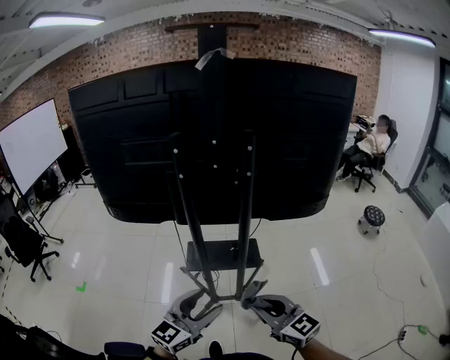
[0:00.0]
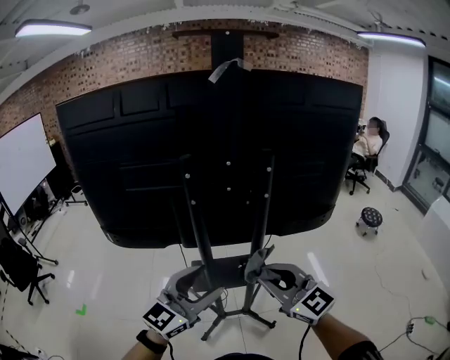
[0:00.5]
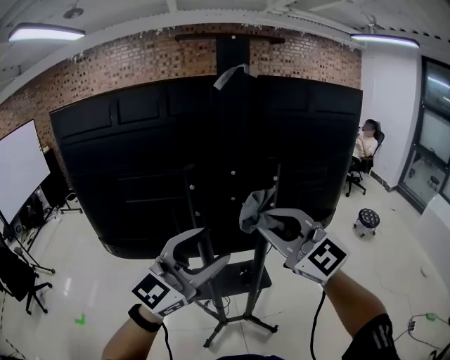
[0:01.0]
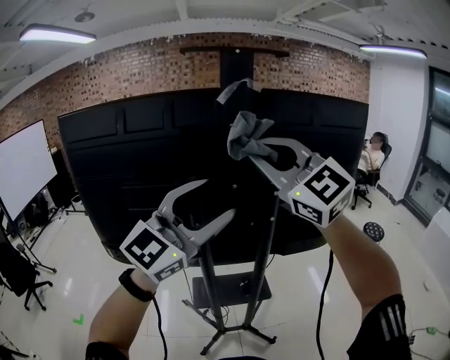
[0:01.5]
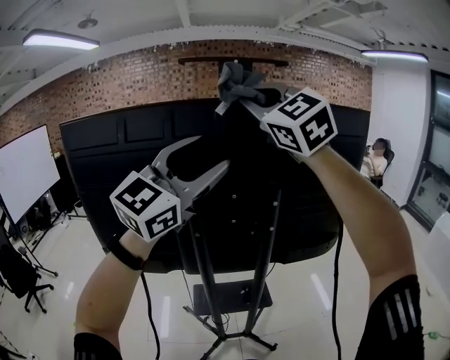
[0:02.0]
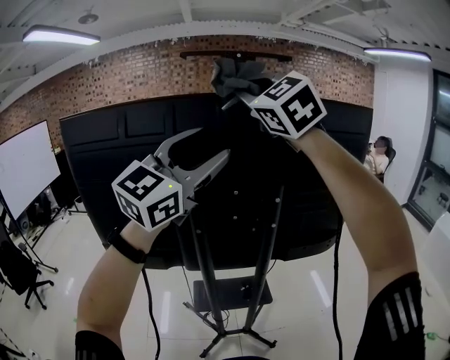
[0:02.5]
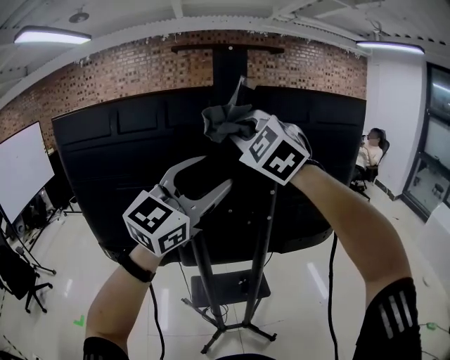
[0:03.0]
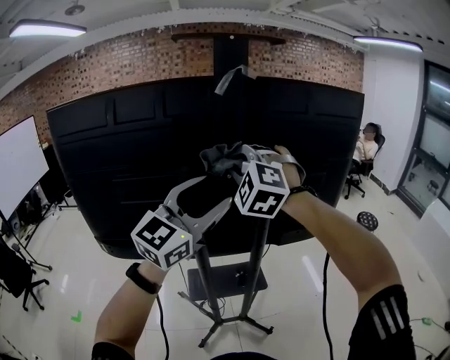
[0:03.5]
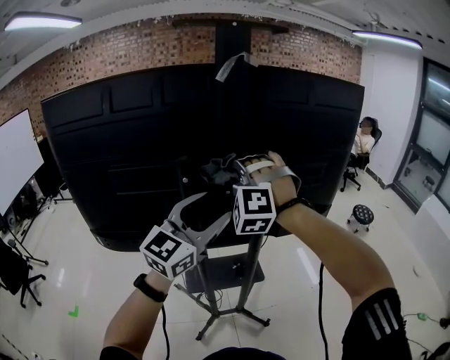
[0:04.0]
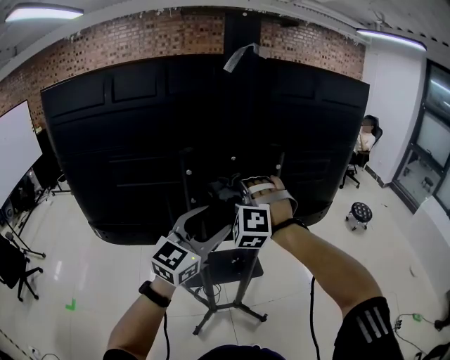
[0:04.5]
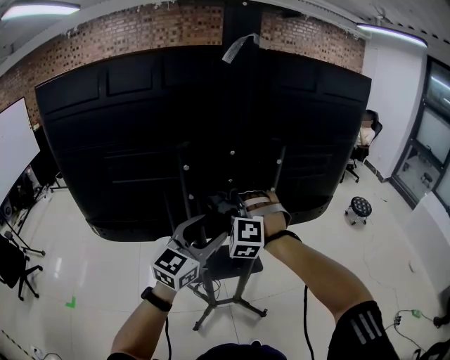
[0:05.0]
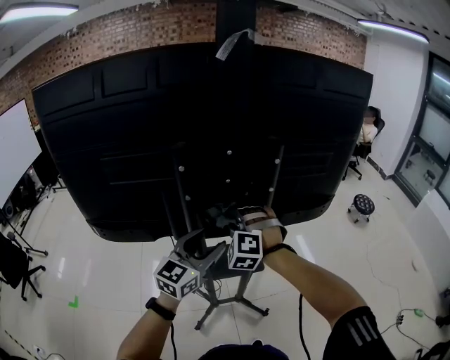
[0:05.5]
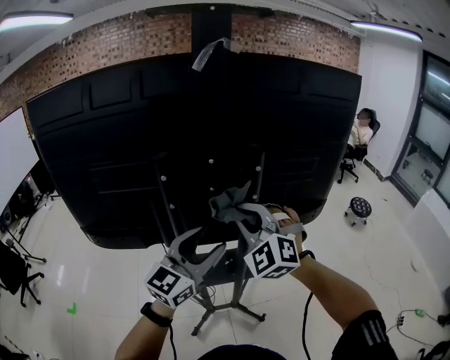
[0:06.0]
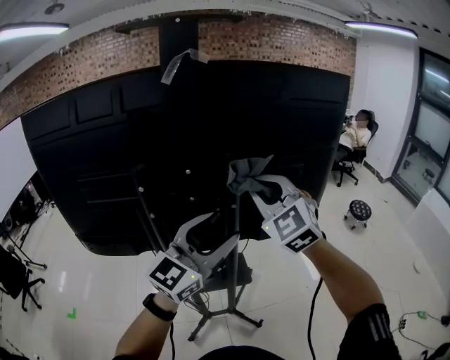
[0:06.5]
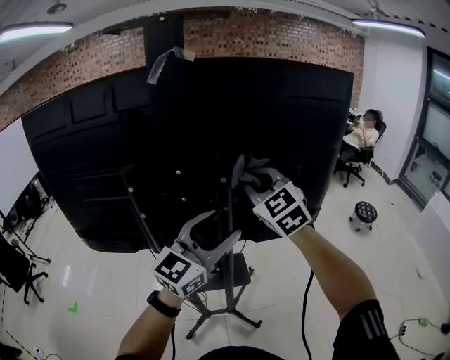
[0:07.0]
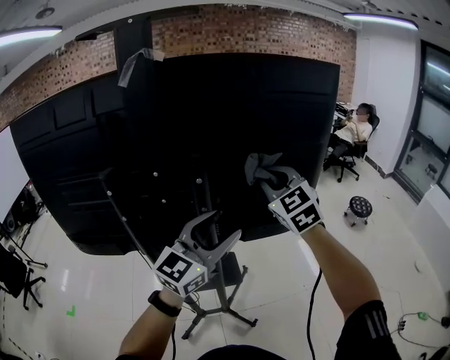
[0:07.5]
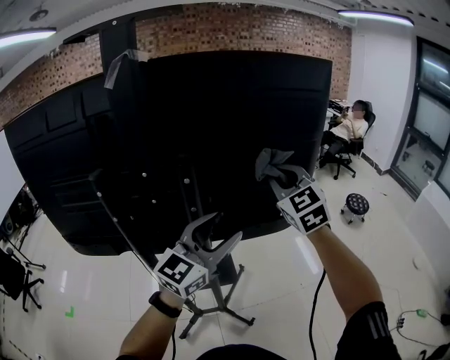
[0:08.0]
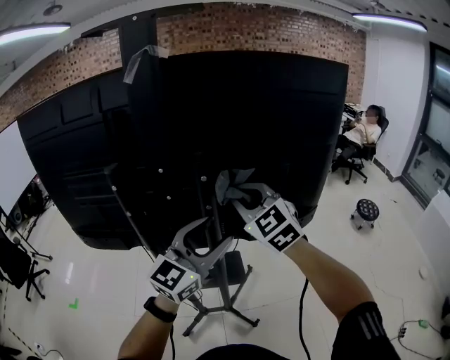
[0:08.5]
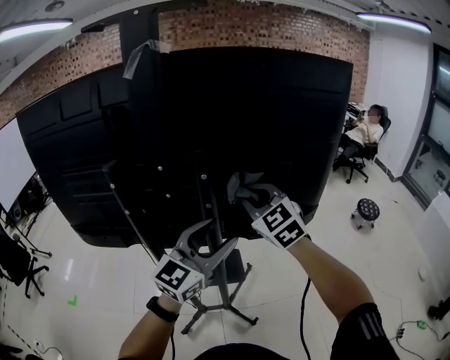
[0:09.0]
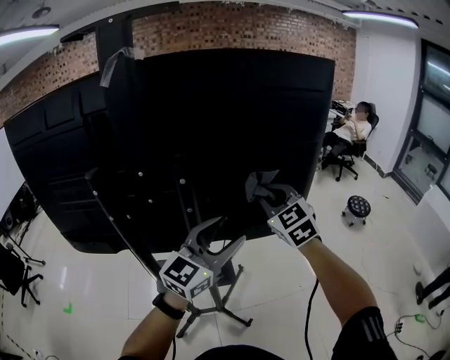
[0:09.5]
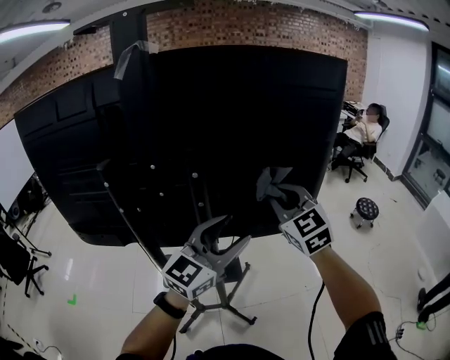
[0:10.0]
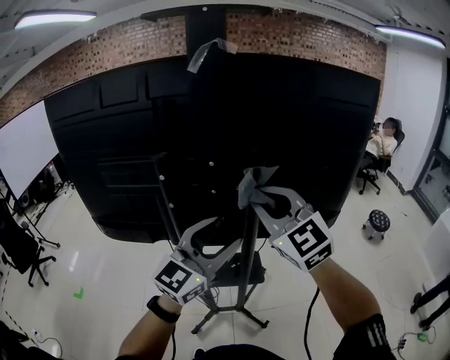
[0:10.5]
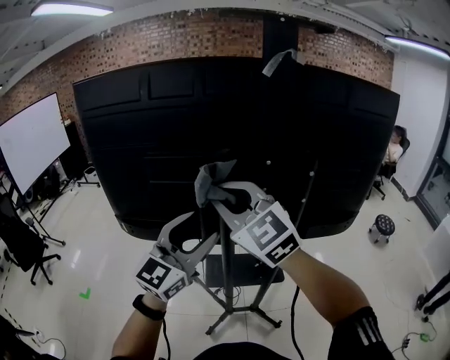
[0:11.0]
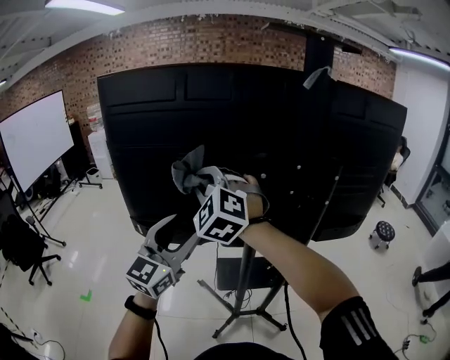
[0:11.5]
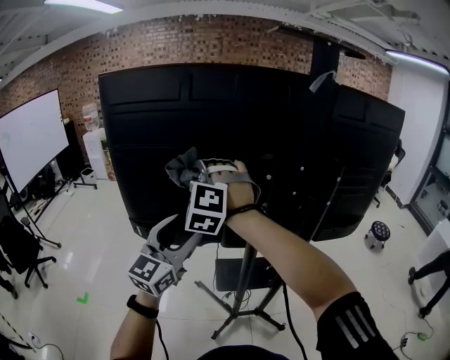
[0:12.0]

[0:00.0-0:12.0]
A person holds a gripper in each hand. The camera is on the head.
0:00.0 to 0:02.0: The grippers both shift upward and forward by approximately 60 cm. The right gripper twists approximately 50 degrees counterclockwise, seen from behind; the left gripper turns by approximately 40 degrees.
0:02.0 to 0:04.0: Both grippers move downward, about 25 cm. The right gripper turns by some 60 degrees.
0:04.0 to 0:06.0: The right gripper shifts some 10 cm downward and to the right, and changes its angle by approximately 30 degrees. The left gripper is displaced downward by approximately 10 cm.
0:06.0 to 0:08.0: The grippers both shift to the right and forward by some 25 cm. The right gripper swivels about 30 degrees.
0:08.0 to 0:10.0: The right gripper moves some 15 cm to the left and comes back.
0:10.0 to 0:12.0: Both grippers are carried to the left, about 50 cm. The right gripper rolls counterclockwise, seen from behind, by about 50 degrees.

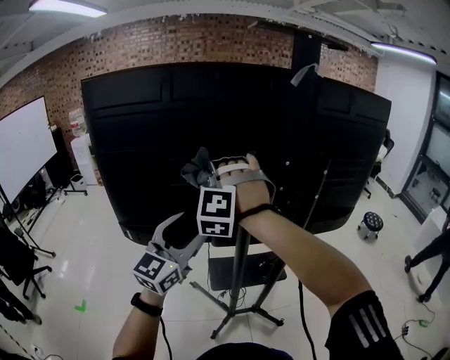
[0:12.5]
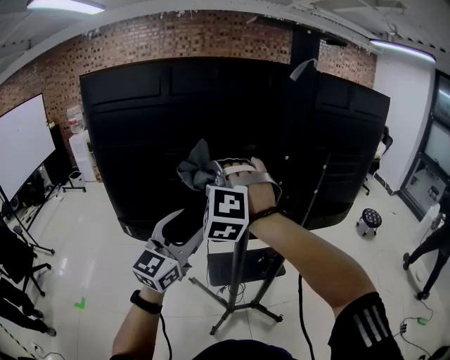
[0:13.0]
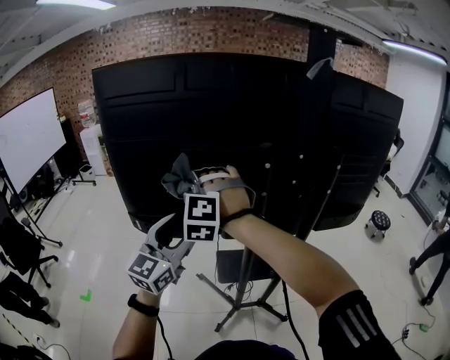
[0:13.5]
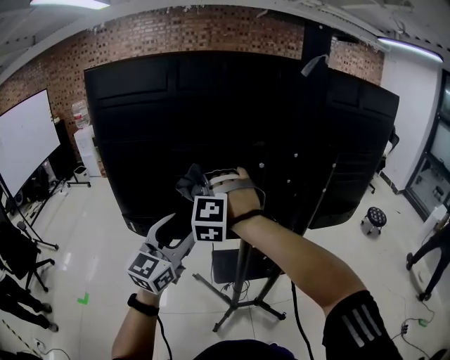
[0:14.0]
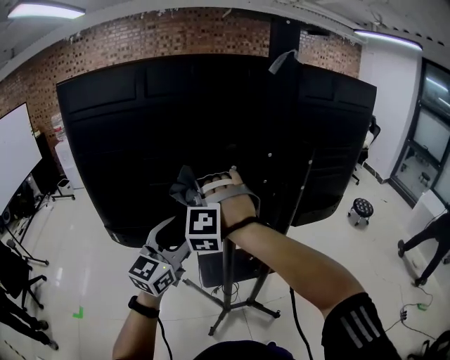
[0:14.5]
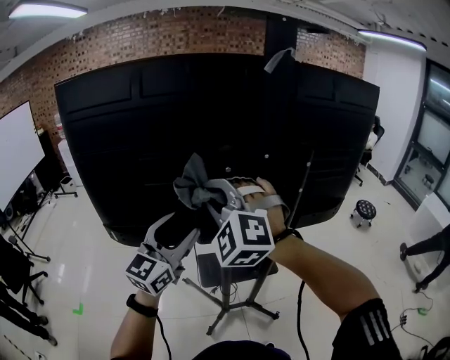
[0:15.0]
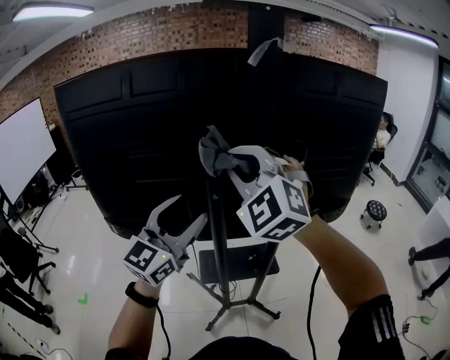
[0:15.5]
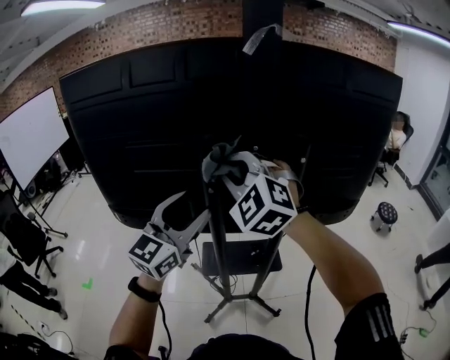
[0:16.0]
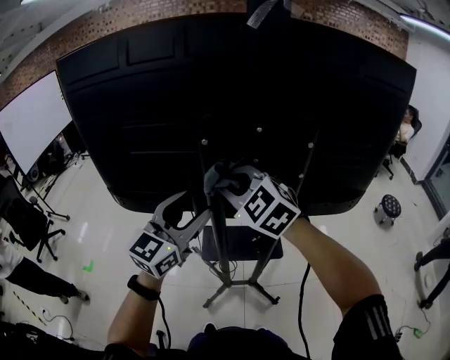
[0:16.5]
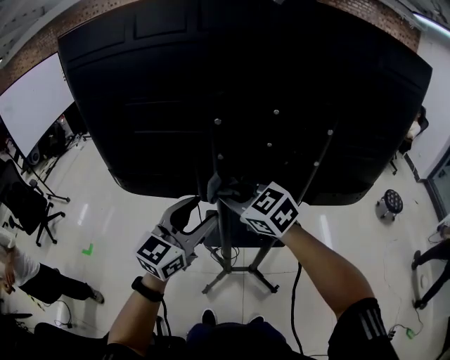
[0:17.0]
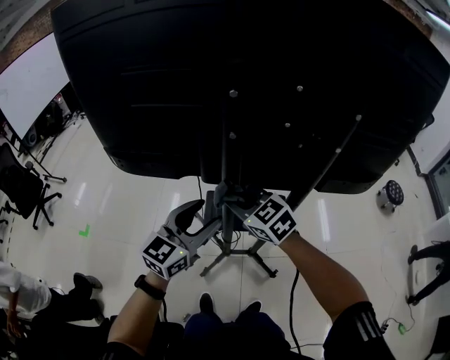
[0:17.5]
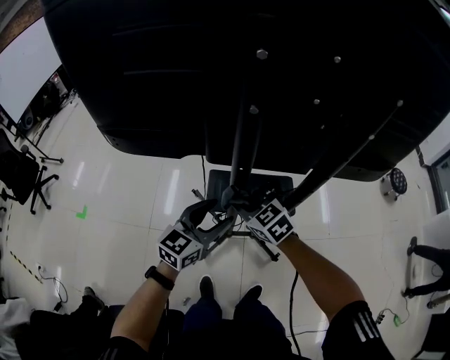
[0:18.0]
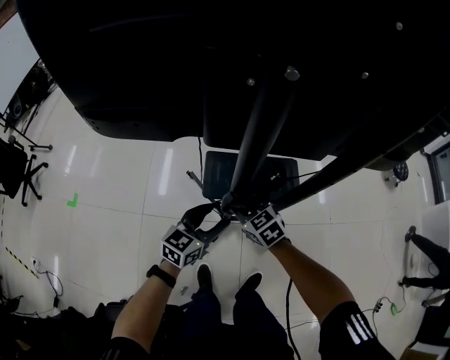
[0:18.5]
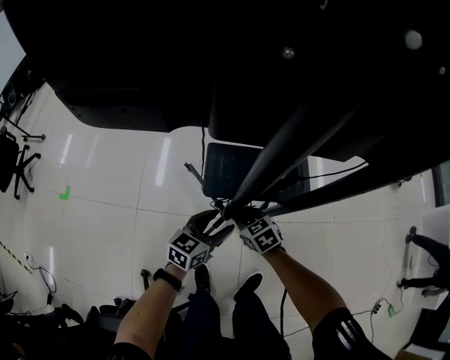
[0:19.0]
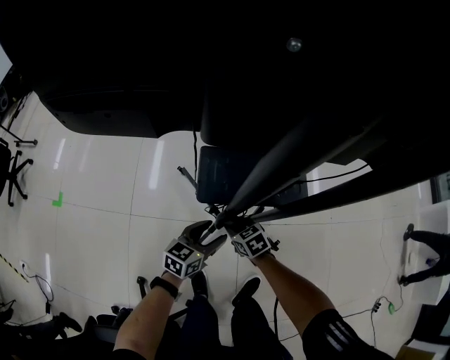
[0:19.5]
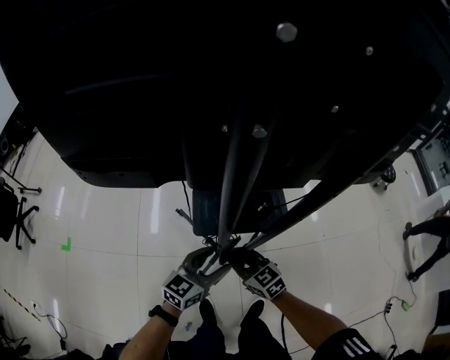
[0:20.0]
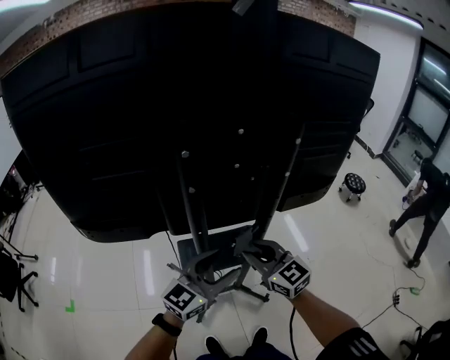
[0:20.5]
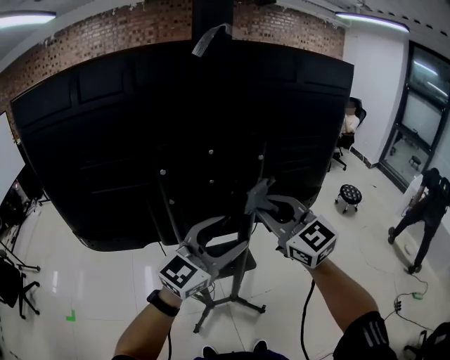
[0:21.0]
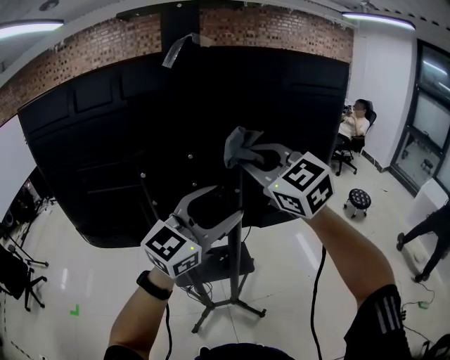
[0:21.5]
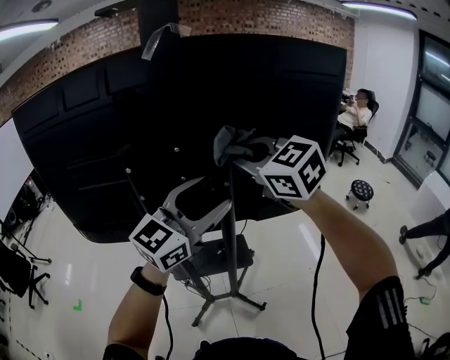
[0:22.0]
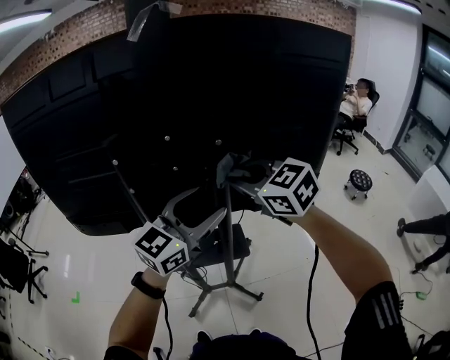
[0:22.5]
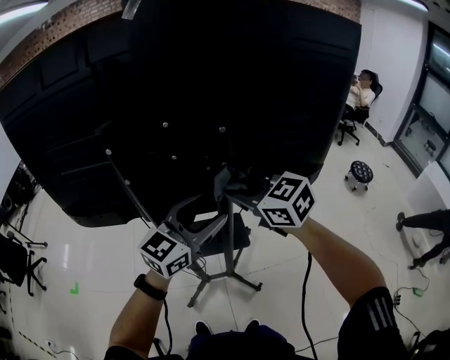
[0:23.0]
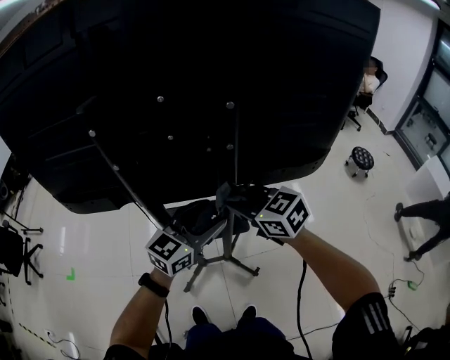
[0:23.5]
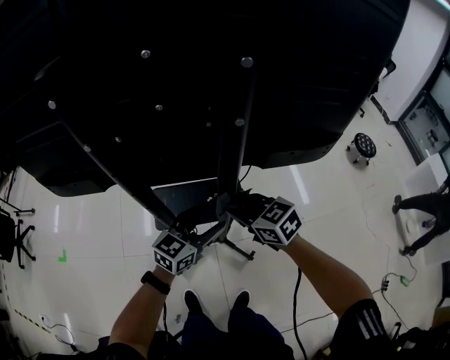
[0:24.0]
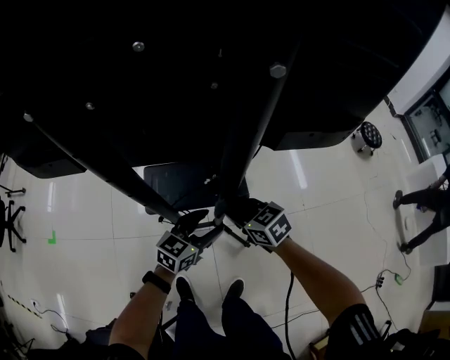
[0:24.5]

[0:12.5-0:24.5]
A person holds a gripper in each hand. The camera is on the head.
0:12.5 to 0:14.5: The right gripper goes some 5 cm downward, and moves roughly 10 cm to the left and comes back.
0:14.5 to 0:16.5: The right gripper travels upward and back again, roughly 15 cm each way, and swivels some 60 degrees. The left gripper moves roughly 10 cm upward and comes back.
0:16.5 to 0:18.5: The grippers both shift downward by about 40 cm. The right gripper turns by about 40 degrees. Meanwhile the left gripper changes its angle by some 30 degrees.
0:18.5 to 0:20.5: Both grippers travel together upward, approximately 30 cm. The left gripper turns by about 30 degrees. Meanwhile the right gripper tilts its fingers about 30 degrees upward.
0:20.5 to 0:22.5: The two grippers go some 25 cm upward, to the right and forward.
0:22.5 to 0:24.5: Both grippers travel together downward, approximately 50 cm. The right gripper rotates approximately 30 degrees. The left gripper turns by some 30 degrees.

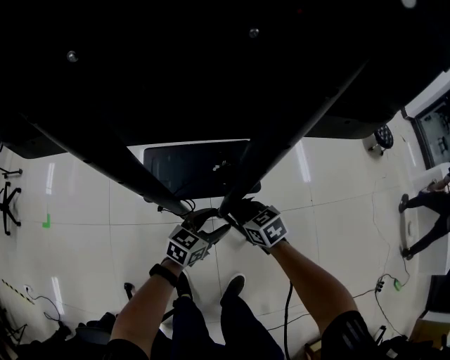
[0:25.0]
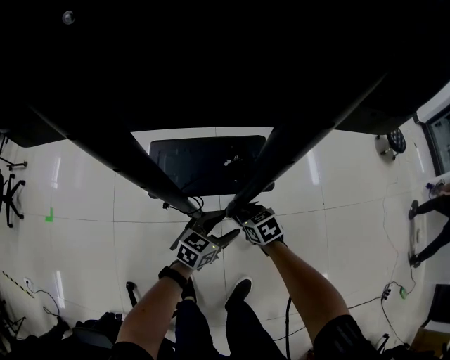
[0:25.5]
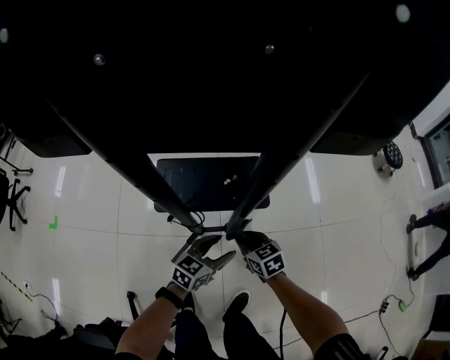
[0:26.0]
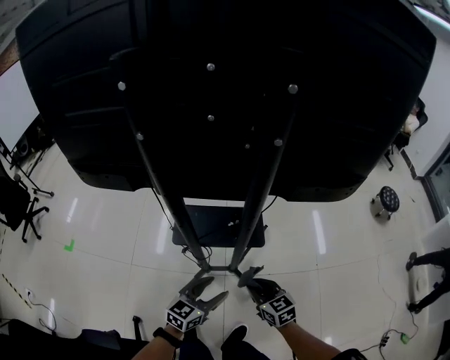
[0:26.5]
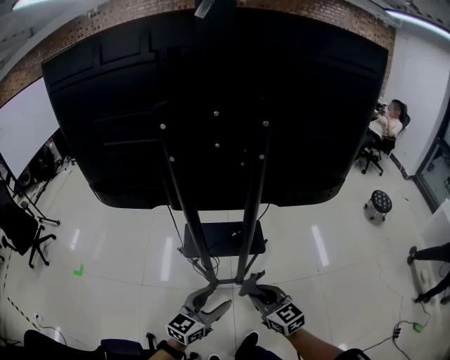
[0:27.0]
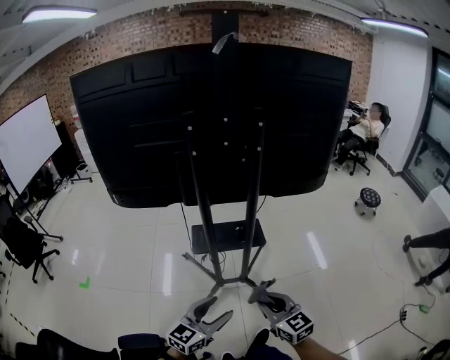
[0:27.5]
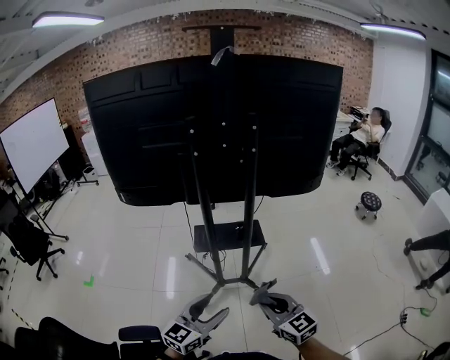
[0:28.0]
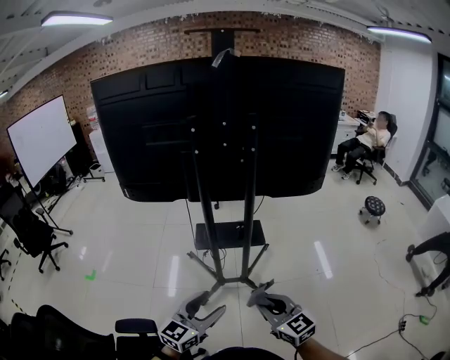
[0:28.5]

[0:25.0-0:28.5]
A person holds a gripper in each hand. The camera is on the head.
0:25.0 to 0:27.0: Both grippers travel together upward and backward, some 35 cm. The right gripper turns by approximately 30 degrees, while the left gripper turns by approximately 20 degrees.
0:27.0 to 0:28.5: The grippers both shift backward and upward by approximately 25 cm.
